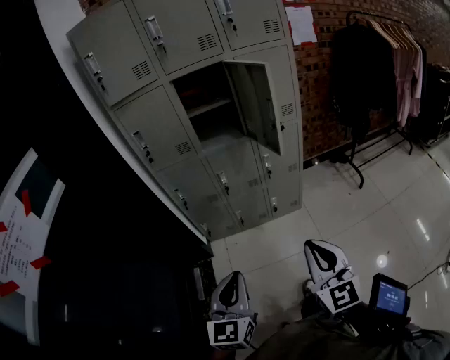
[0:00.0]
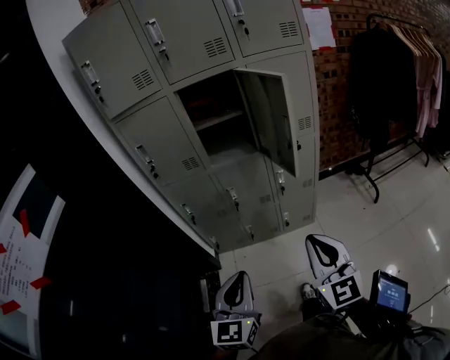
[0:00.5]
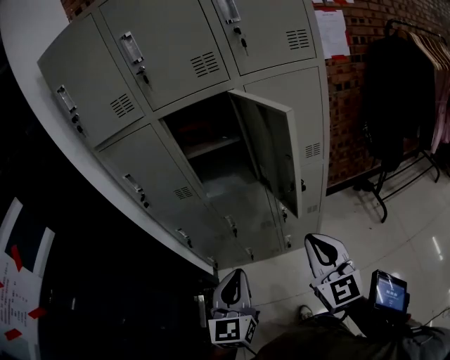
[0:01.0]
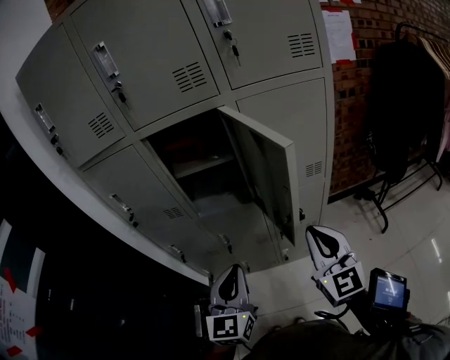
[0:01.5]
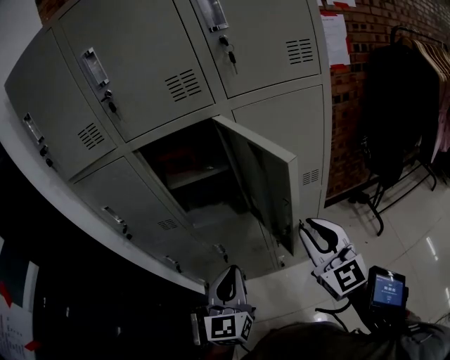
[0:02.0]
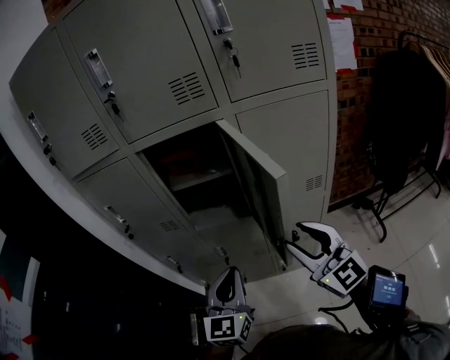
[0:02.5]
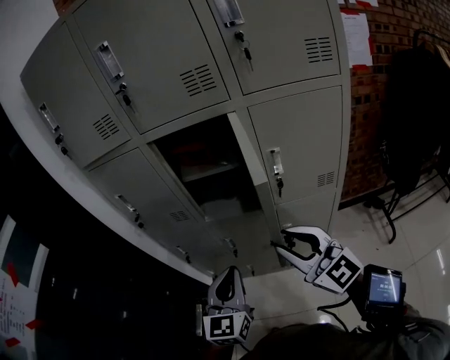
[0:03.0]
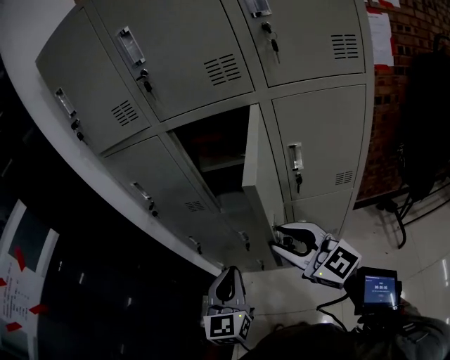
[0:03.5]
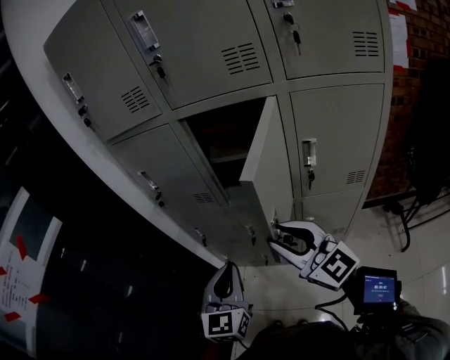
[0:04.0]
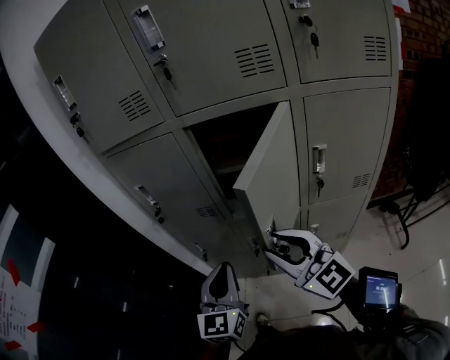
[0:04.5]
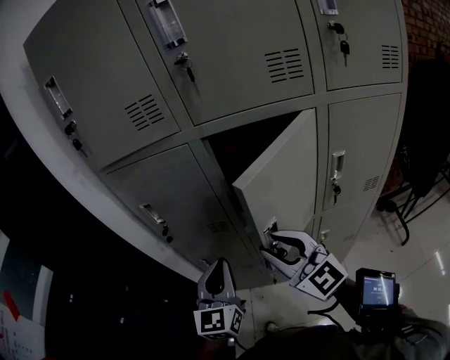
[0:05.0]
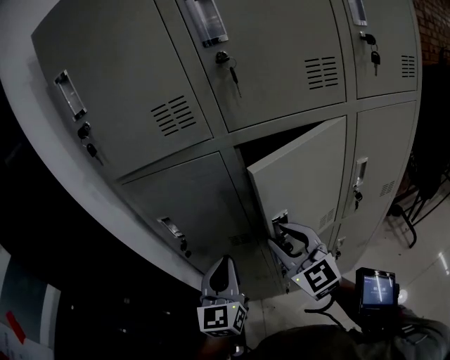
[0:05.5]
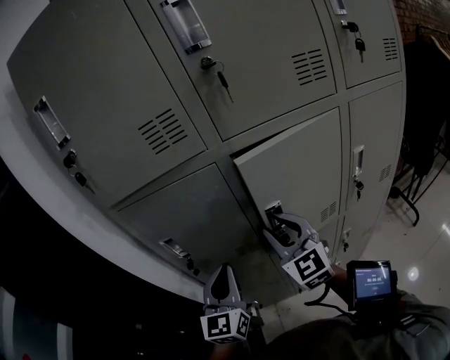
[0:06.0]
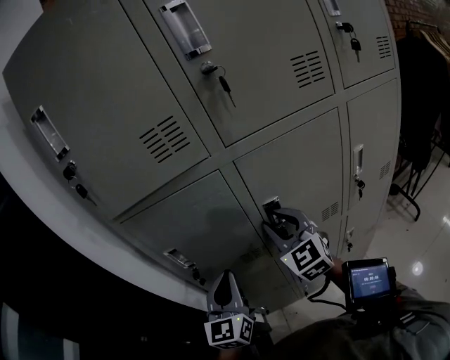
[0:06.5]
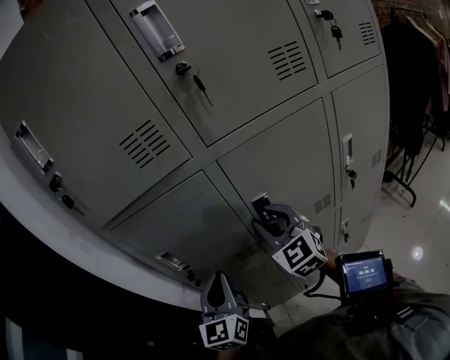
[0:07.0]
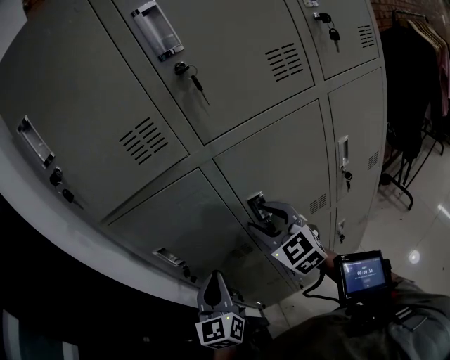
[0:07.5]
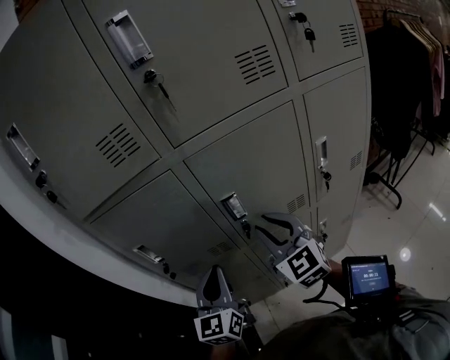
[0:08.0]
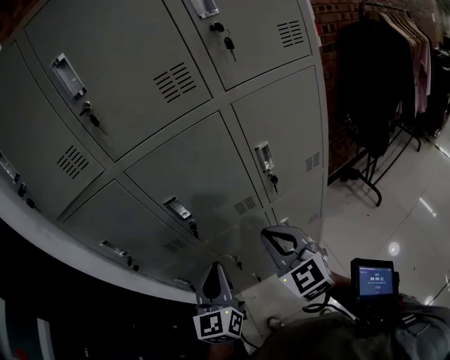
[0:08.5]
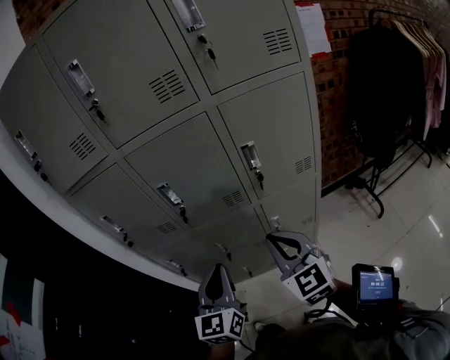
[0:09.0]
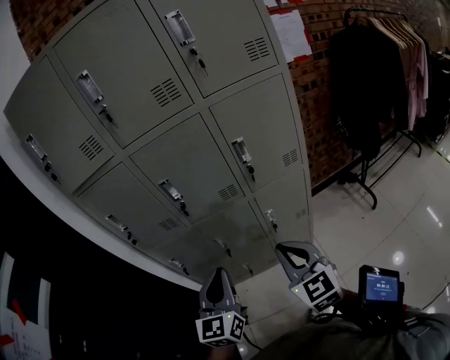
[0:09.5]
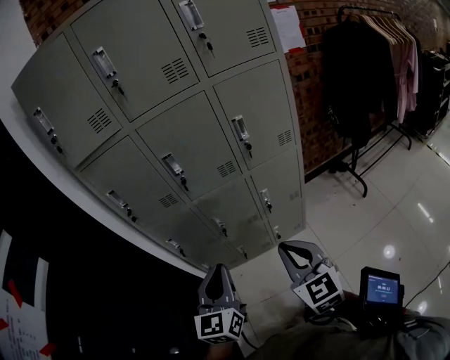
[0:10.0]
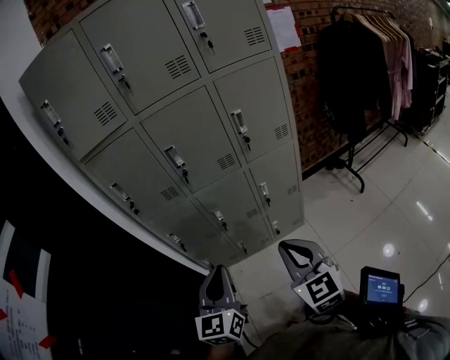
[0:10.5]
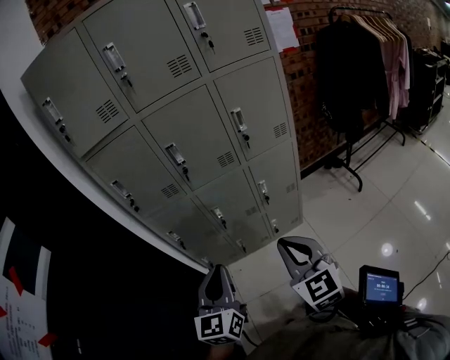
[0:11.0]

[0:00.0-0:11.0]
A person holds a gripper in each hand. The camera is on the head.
0:00.0 to 0:02.0: Both grippers are carried forward, roughly 50 cm.
0:02.0 to 0:03.5: The left gripper ends up roughly 5 cm from where it was, while the right gripper changes place by about 15 cm, turns by roughly 40 degrees, and opens.
0:03.5 to 0:05.5: Both grippers move forward and to the left, some 25 cm. The right gripper changes its angle by some 30 degrees.
0:05.5 to 0:07.5: The left gripper moves approximately 5 cm, while the right gripper shifts roughly 10 cm forward.
0:07.5 to 0:09.0: Both grippers move to the right and backward, about 35 cm. The right gripper closes up.
0:09.0 to 0:11.0: The grippers both shift backward by roughly 25 cm.

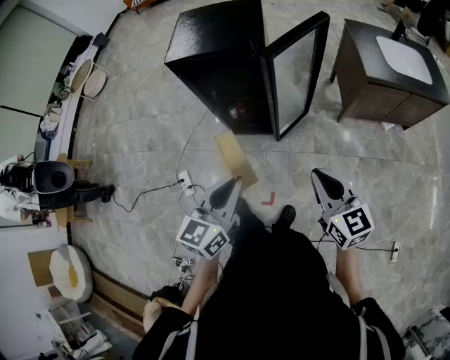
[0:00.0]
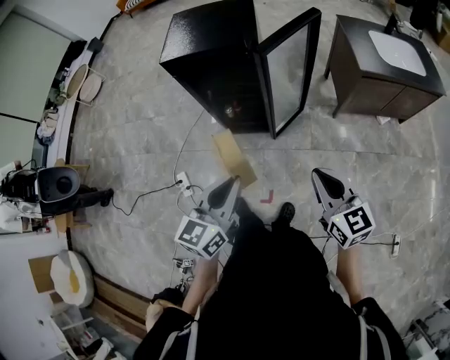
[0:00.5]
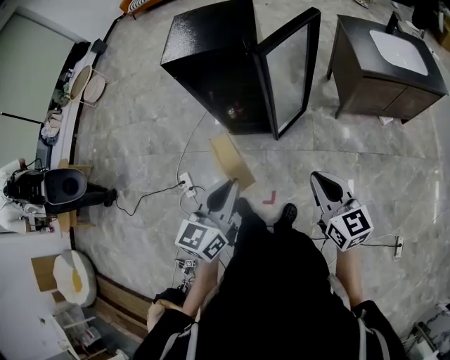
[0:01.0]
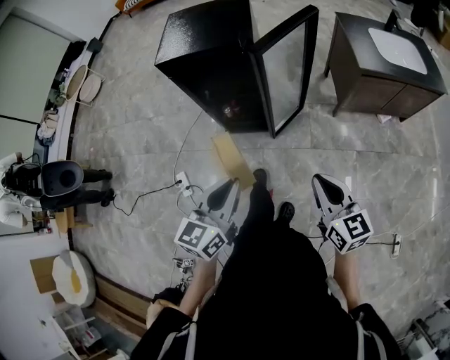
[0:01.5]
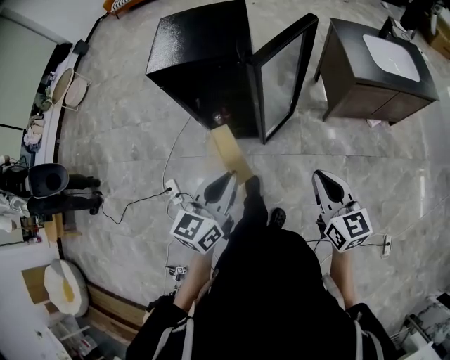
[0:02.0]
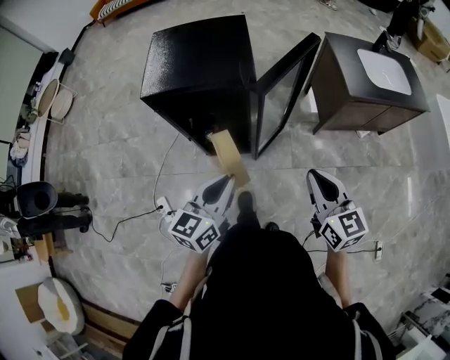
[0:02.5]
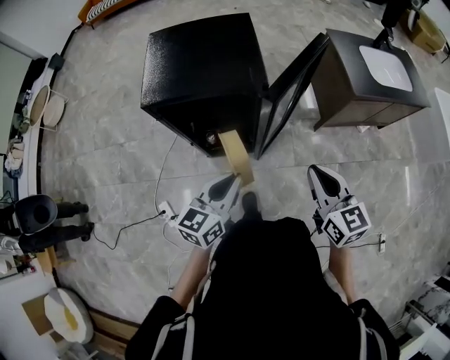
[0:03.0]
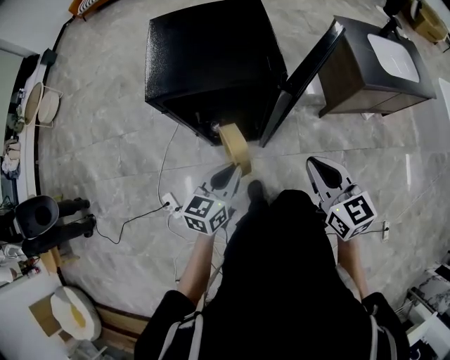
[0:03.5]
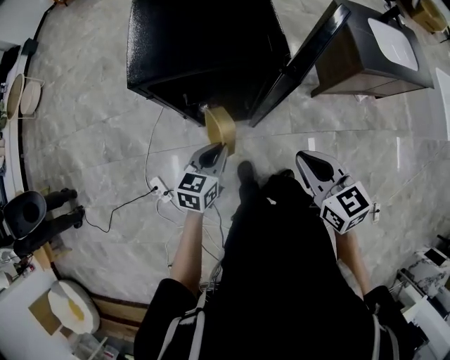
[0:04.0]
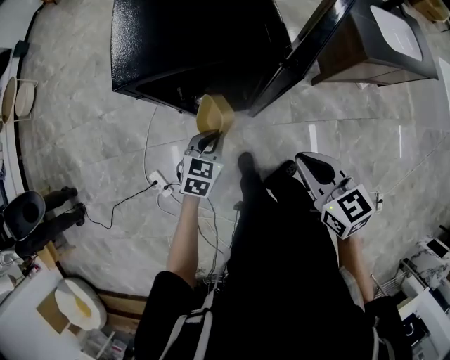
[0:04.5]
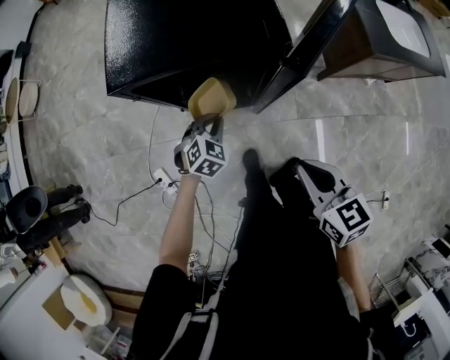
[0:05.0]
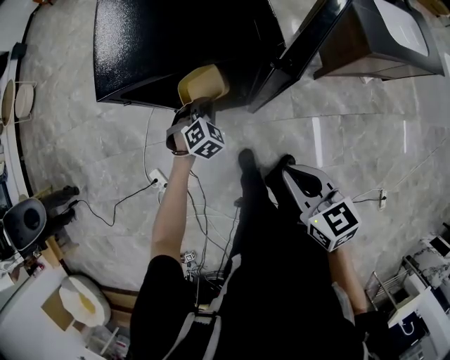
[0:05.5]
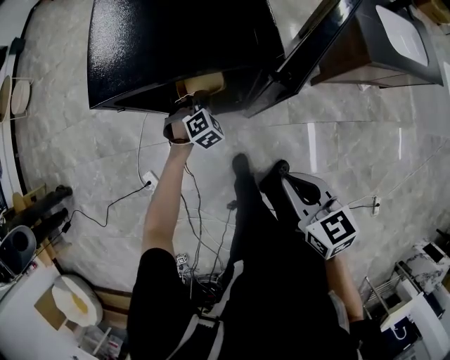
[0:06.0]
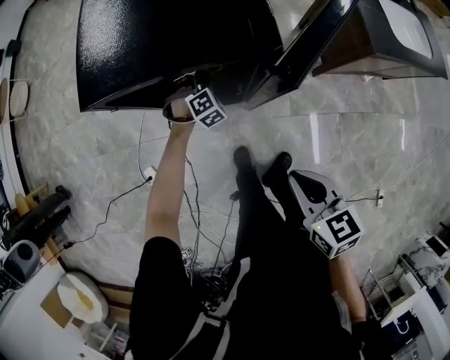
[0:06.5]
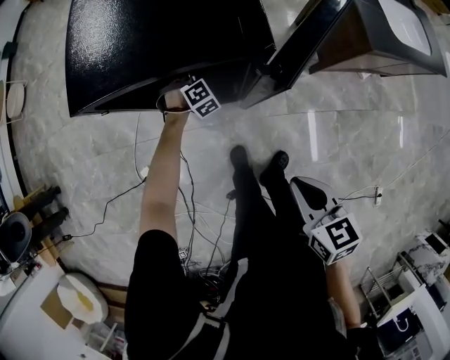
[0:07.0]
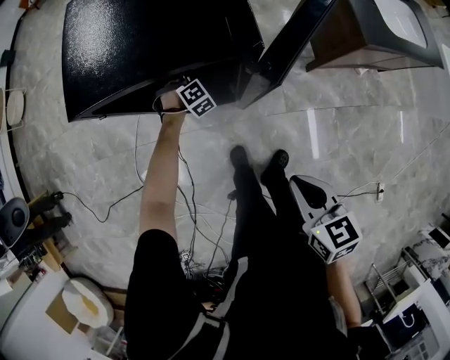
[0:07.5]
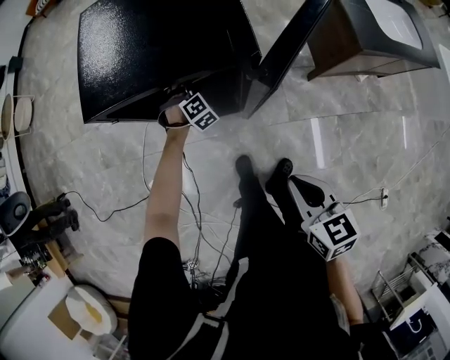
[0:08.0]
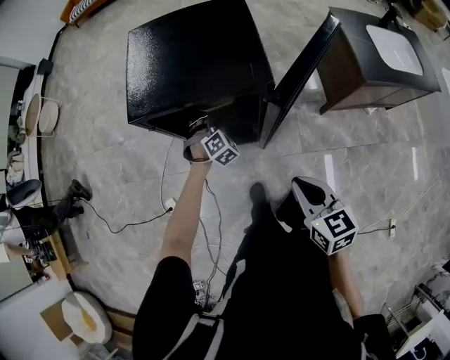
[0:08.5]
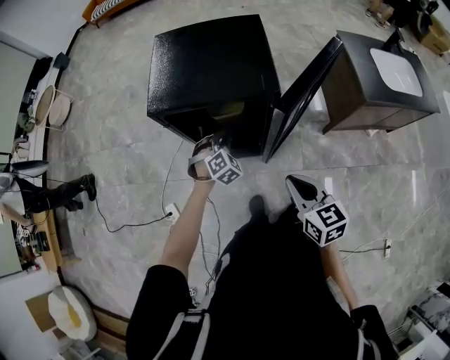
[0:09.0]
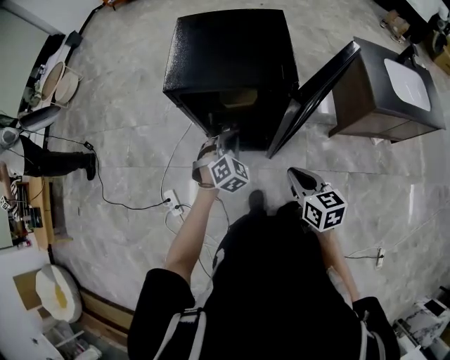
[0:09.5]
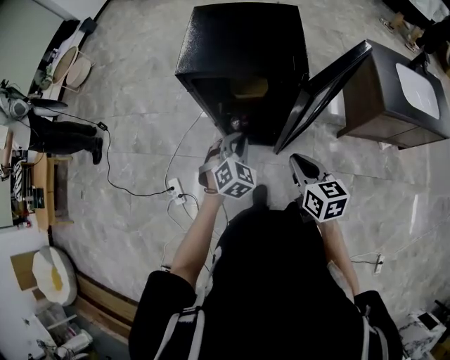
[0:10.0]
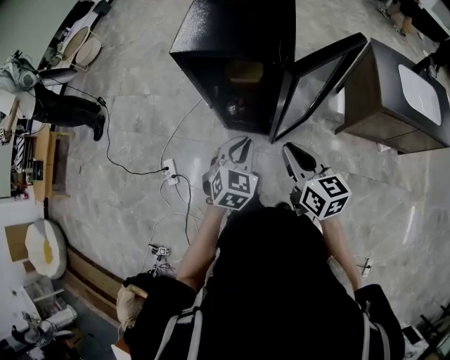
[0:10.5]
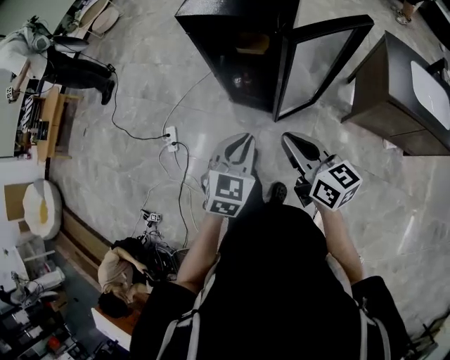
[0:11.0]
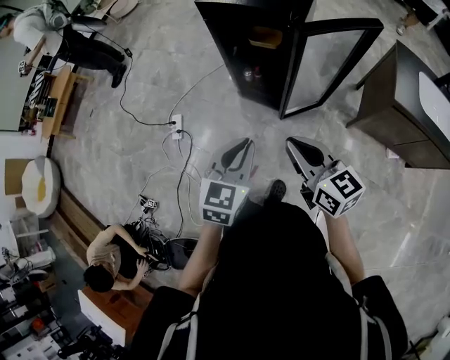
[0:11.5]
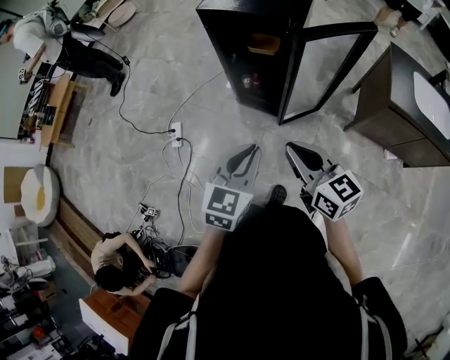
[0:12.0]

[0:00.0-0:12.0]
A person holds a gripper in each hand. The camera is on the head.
0:00.0 to 0:02.0: The left gripper shifts about 5 cm forward.
0:02.0 to 0:04.0: The left gripper heads downward, forward and to the left, covering some 30 cm, and rotates approximately 20 degrees. The right gripper heads to the left and forward, covering about 25 cm.
0:04.0 to 0:06.0: The left gripper is displaced forward and downward by about 25 cm, and rotates around the line of its fingers by some 60 degrees, clockwise from behind. Meanwhile the right gripper travels downward by some 5 cm.
0:06.0 to 0:08.0: The left gripper travels forward by some 5 cm.
0:08.0 to 0:10.0: The left gripper goes some 30 cm backward and upward, and rotates some 40 degrees. The right gripper moves roughly 5 cm.
0:10.0 to 0:12.0: The left gripper goes approximately 35 cm backward and upward, and swivels some 40 degrees. Meanwhile the right gripper heads backward and upward, covering about 20 cm, and swivels about 30 degrees.

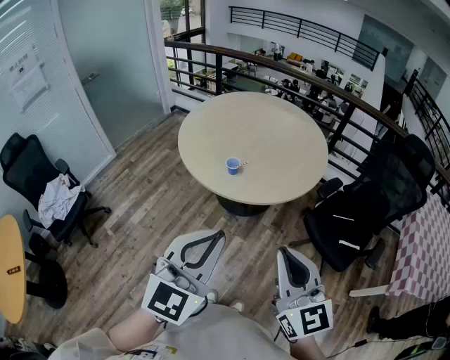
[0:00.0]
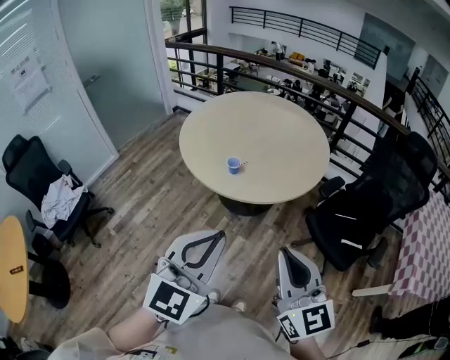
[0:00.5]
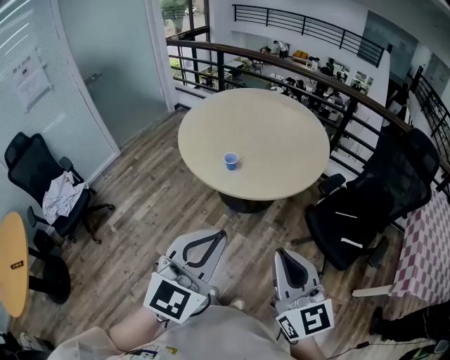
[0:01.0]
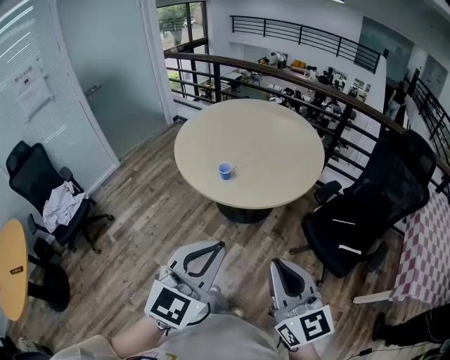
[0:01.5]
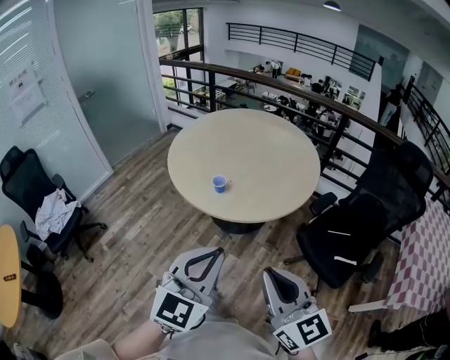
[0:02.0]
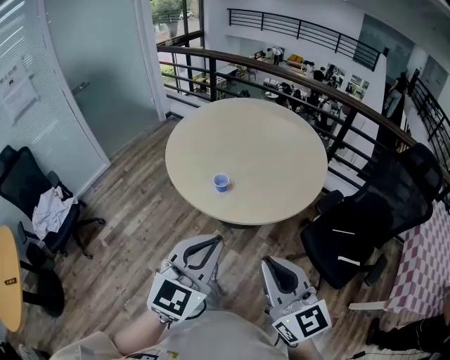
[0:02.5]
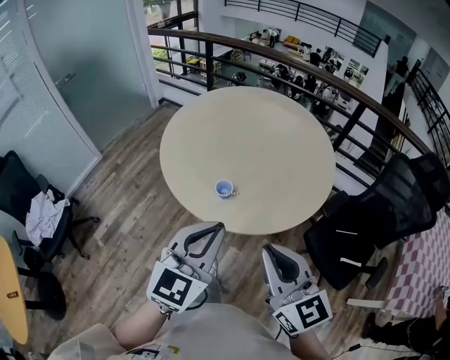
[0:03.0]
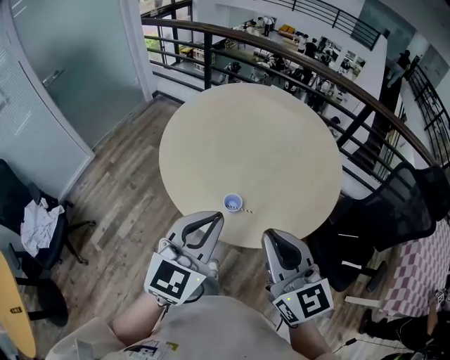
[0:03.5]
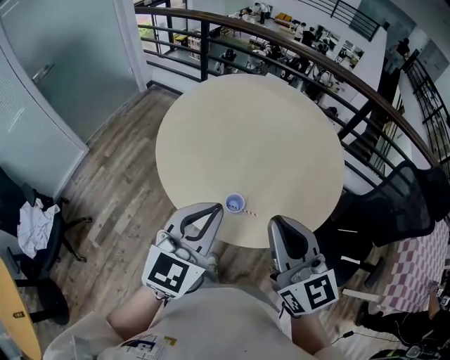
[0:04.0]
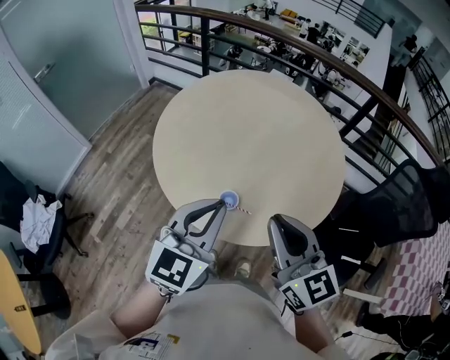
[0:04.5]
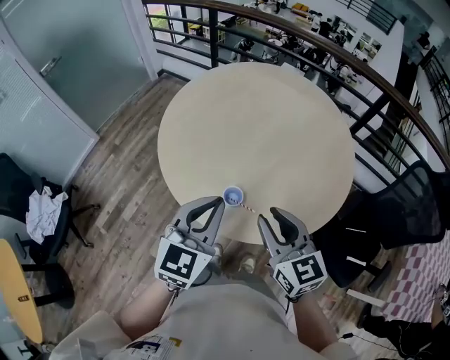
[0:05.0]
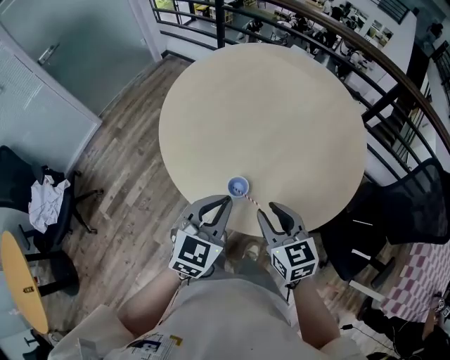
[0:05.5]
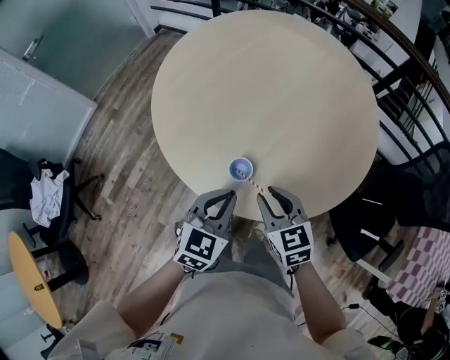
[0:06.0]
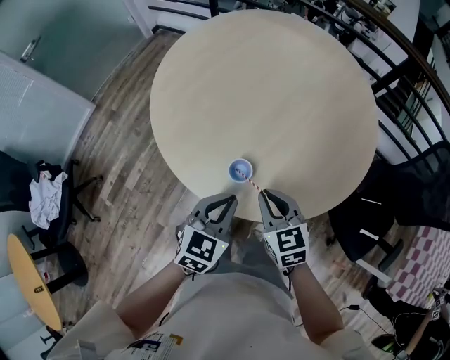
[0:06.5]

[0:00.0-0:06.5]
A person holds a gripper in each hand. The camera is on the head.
0:00.0 to 0:02.0: Both grippers travel together to the right, about 5 cm.
0:02.0 to 0:04.5: Both grippers are carried forward, approximately 40 cm.
0:04.5 to 0:06.5: The two grippers go approximately 25 cm downward. The left gripper changes its angle by approximately 30 degrees; the right gripper tips its fingers downward by about 30 degrees.
